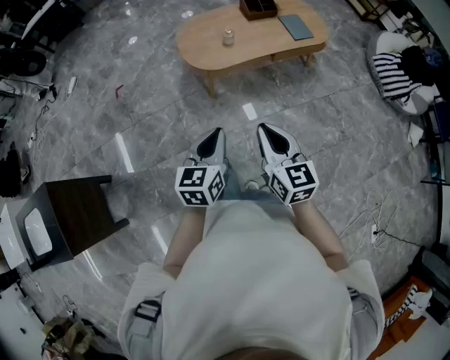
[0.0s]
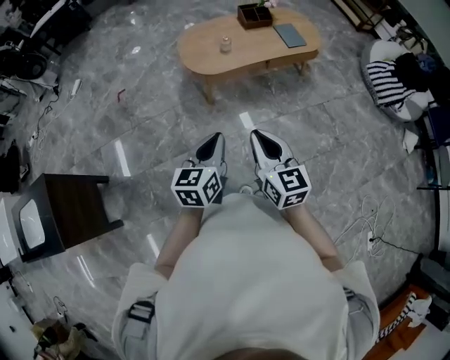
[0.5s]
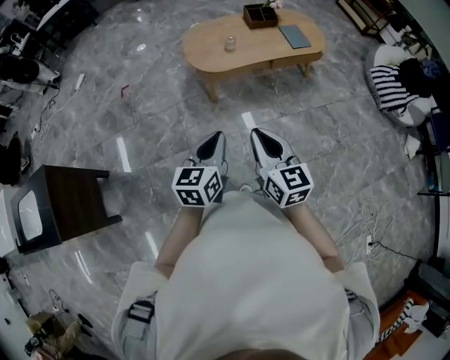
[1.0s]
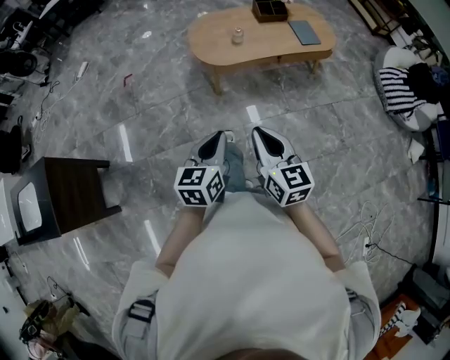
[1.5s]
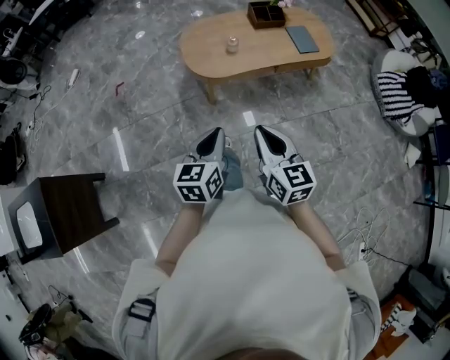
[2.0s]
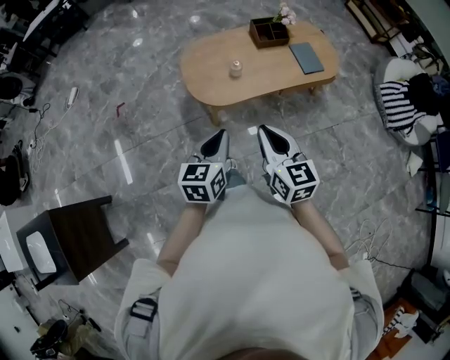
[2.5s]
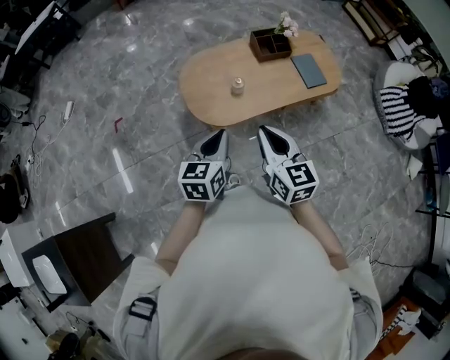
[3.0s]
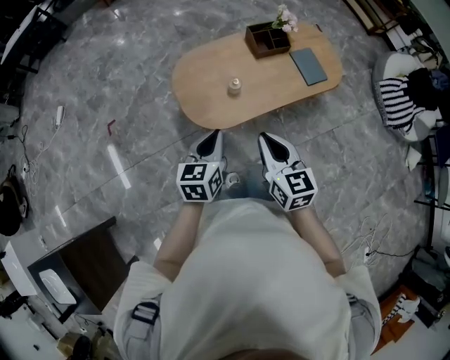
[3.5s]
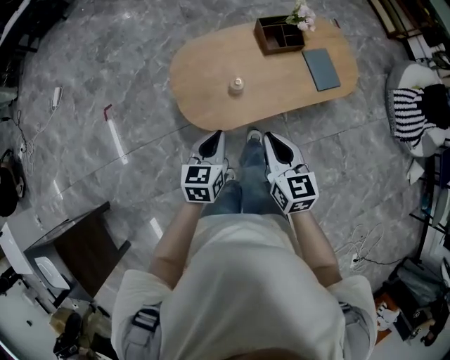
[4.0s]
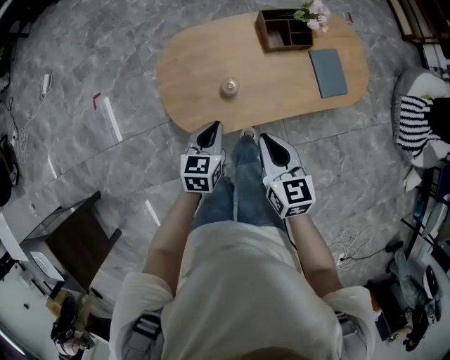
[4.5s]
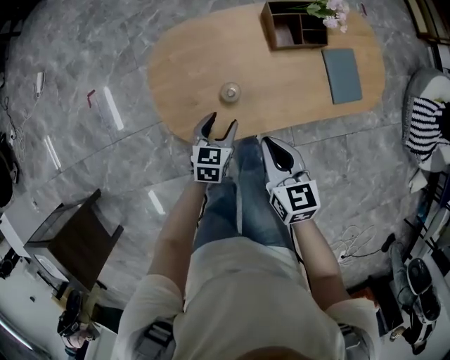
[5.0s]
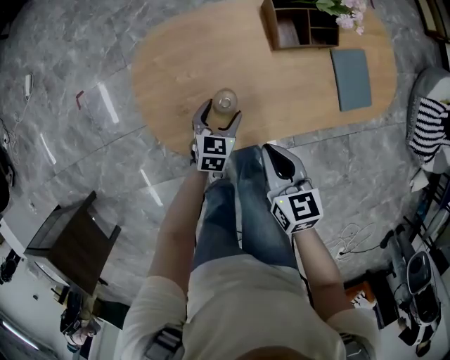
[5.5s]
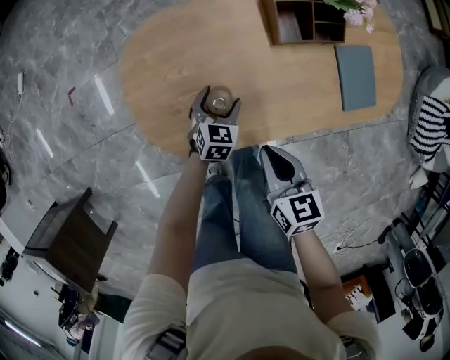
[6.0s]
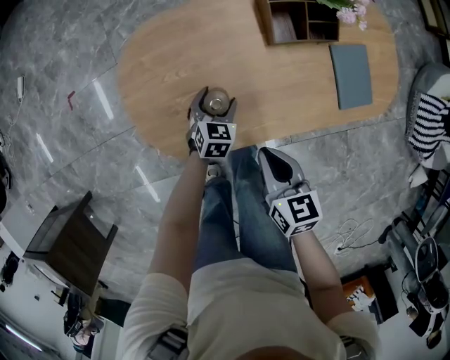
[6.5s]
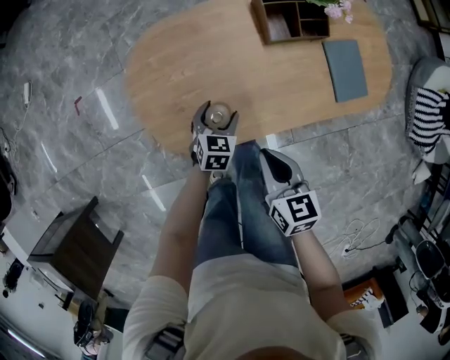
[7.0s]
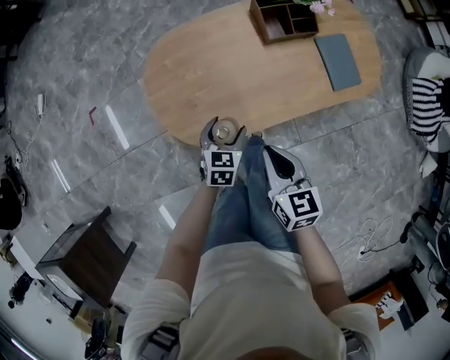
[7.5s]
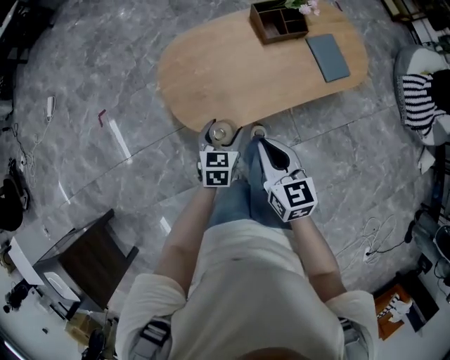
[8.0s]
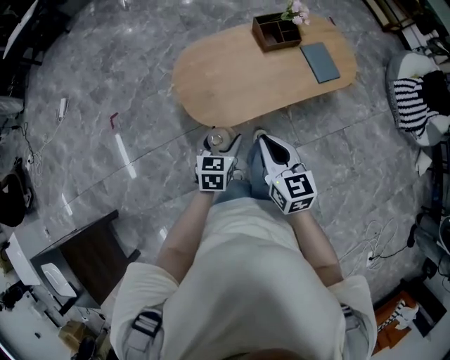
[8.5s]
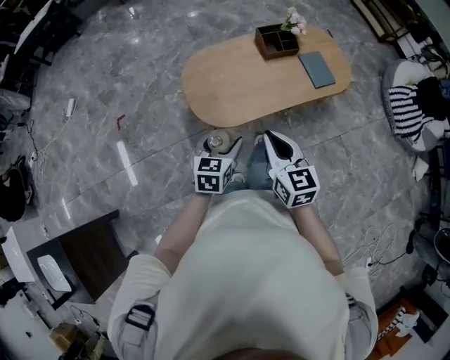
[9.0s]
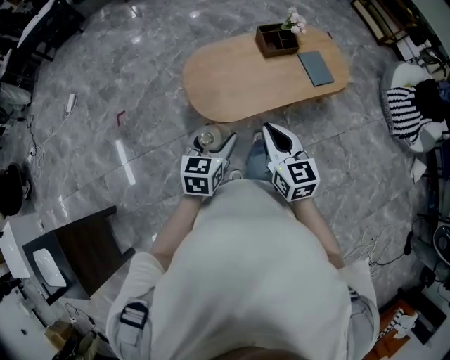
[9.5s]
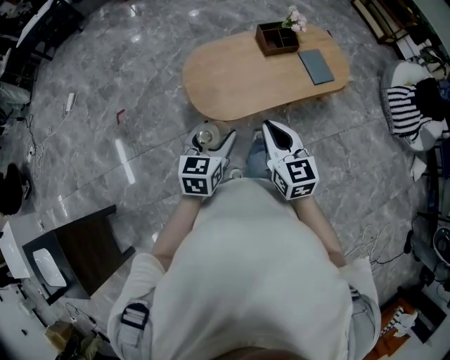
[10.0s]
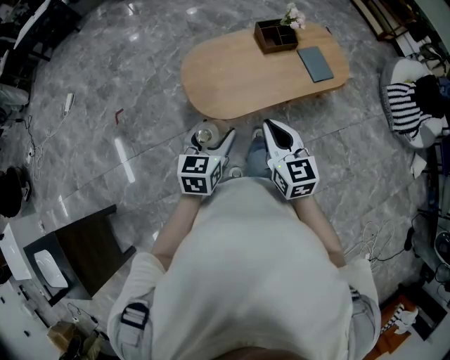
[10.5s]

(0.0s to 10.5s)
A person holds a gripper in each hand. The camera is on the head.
0.0s - 2.0s: The right gripper goes some 5 cm forward; the left gripper moves roughly 5 cm.
2.0s - 4.0s: Both grippers travel together forward, some 35 cm.
4.0s - 6.5s: The left gripper travels downward and forward by approximately 40 cm, turns by about 20 degrees, and opens. Meanwhile the right gripper travels downward and forward by some 25 cm, and swivels roughly 20 degrees.
6.5s - 8.5s: The two grippers go approximately 35 cm upward and backward. The right gripper changes its angle by approximately 20 degrees.
8.5s - 10.5s: The left gripper travels upward and backward by roughly 15 cm; the right gripper travels upward by about 5 cm.

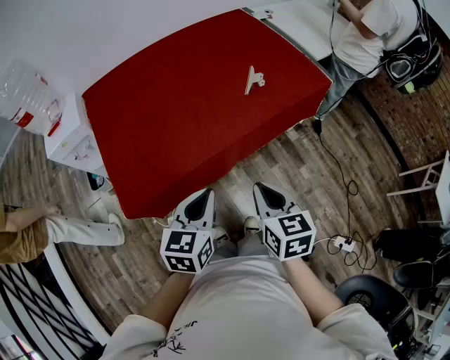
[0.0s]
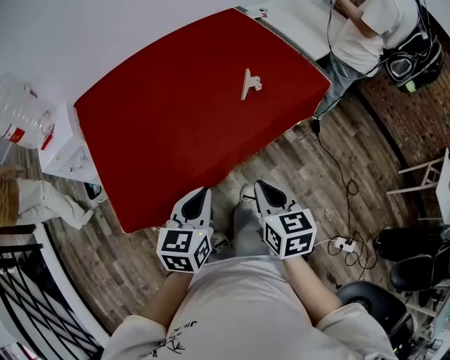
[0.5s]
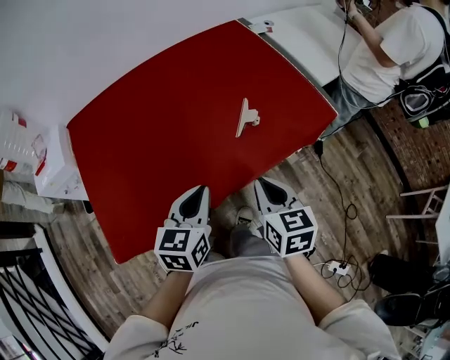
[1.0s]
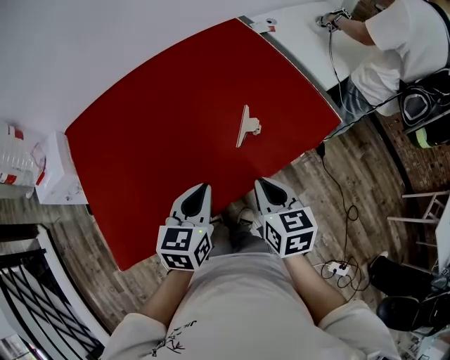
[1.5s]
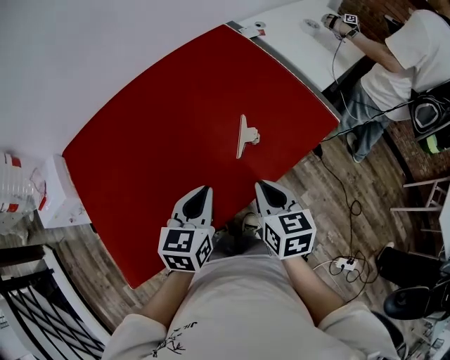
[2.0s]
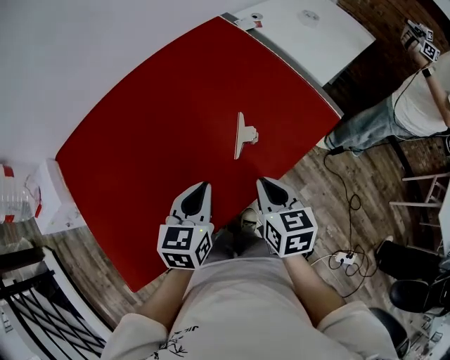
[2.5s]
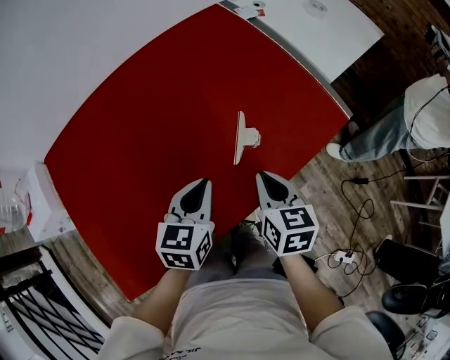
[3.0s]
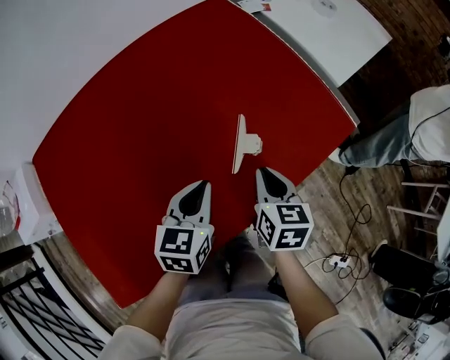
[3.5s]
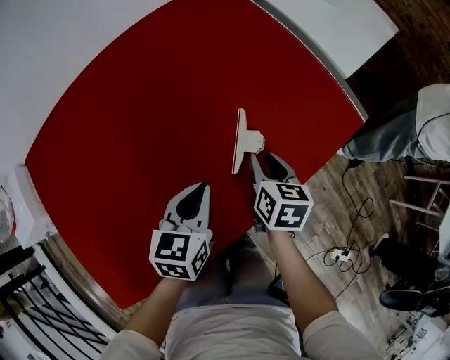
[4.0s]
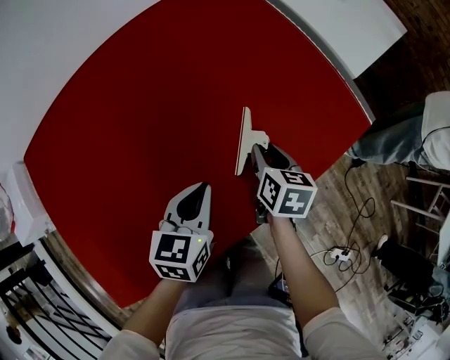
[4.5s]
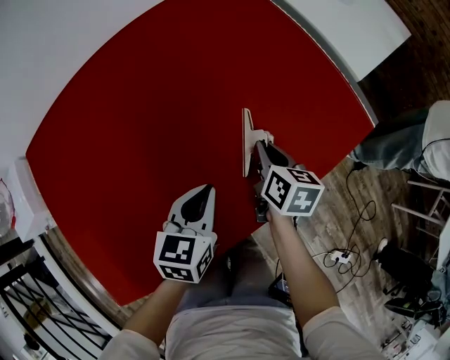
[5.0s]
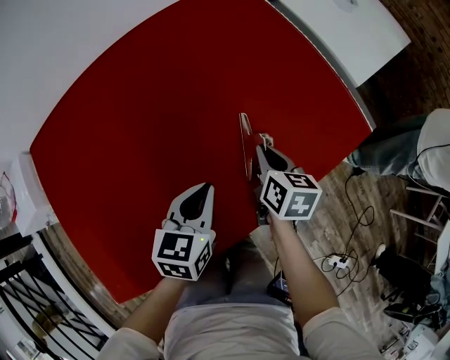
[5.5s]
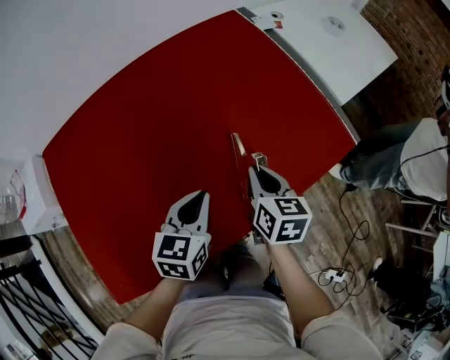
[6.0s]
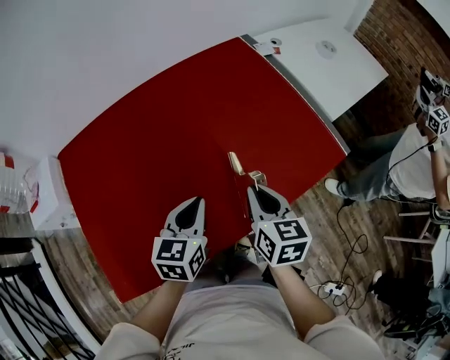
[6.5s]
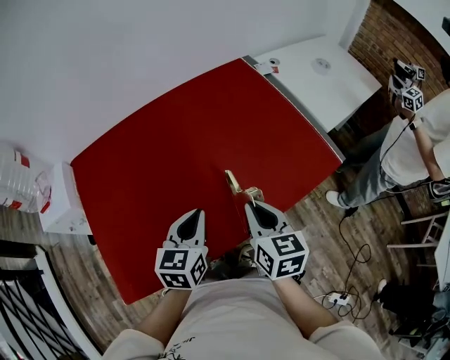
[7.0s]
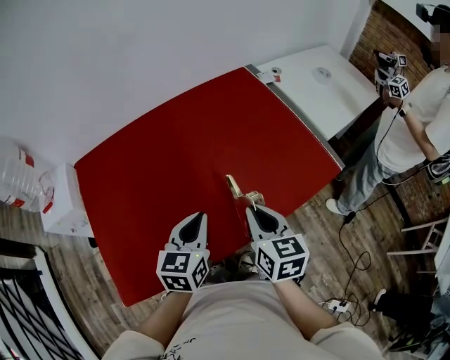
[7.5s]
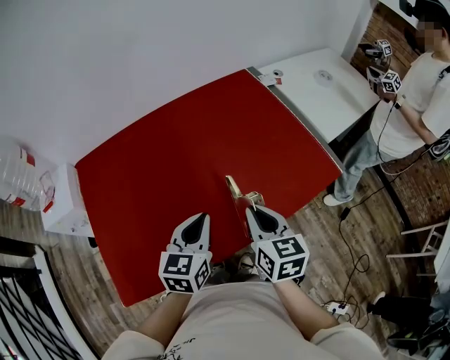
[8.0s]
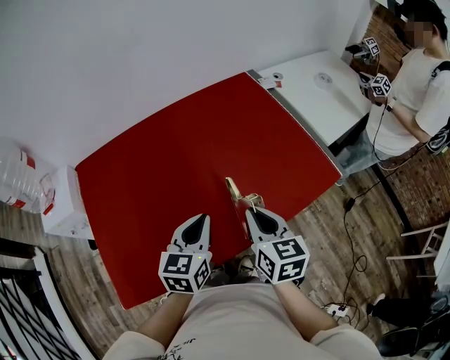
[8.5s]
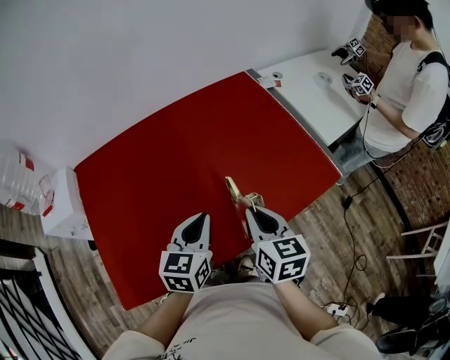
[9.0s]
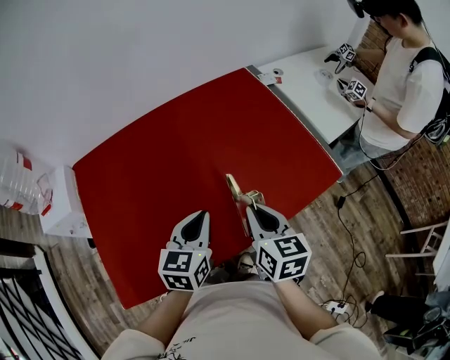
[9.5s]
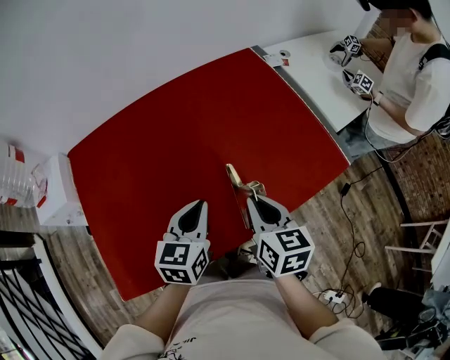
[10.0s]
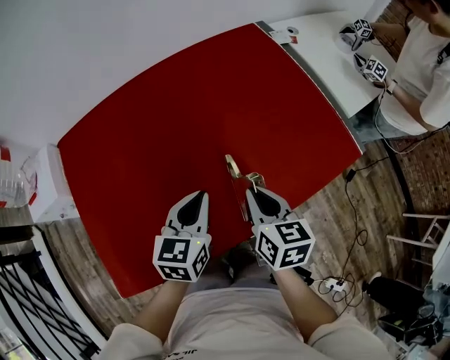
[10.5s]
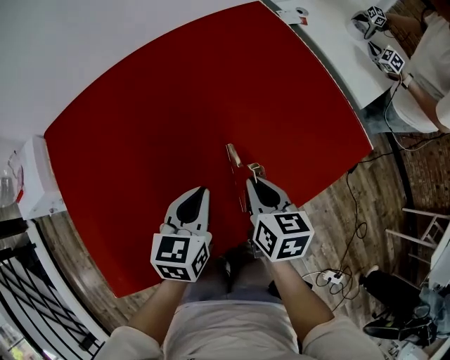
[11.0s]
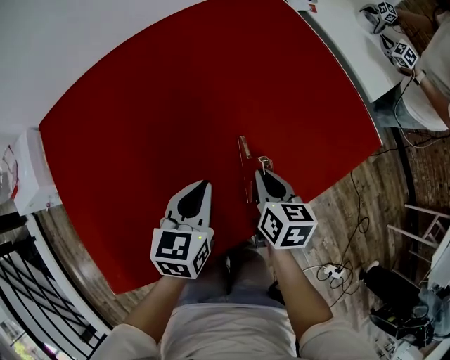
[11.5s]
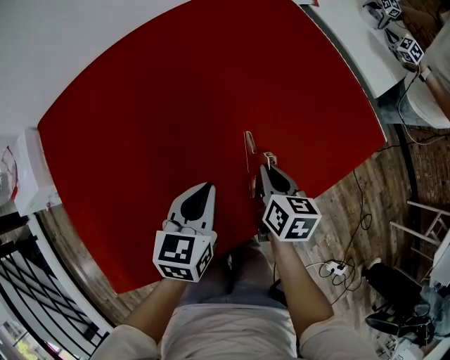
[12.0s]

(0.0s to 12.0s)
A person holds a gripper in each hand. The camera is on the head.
0.0s - 2.0s: Both grippers travel together forward, some 35 cm.
2.0s - 4.0s: The two grippers go roughly 20 cm downward and forward. The right gripper opens its fingers.
4.0s - 6.0s: The right gripper shifts some 10 cm upward; the left gripper heads upward, covering roughly 5 cm.
6.0s - 8.0s: The grippers both shift upward and backward by some 15 cm.
8.0s - 10.0s: The left gripper shifts by roughly 5 cm.
10.0s - 12.0s: Both grippers move downward, approximately 20 cm.

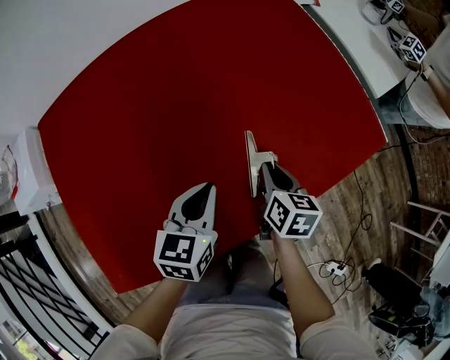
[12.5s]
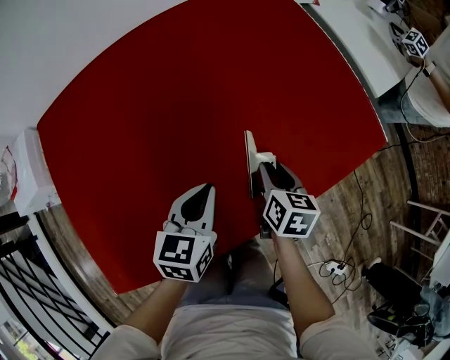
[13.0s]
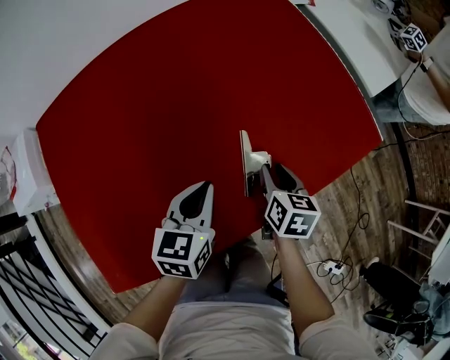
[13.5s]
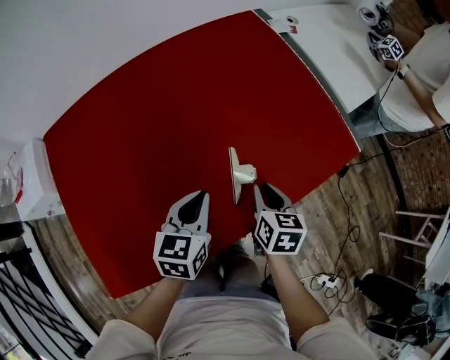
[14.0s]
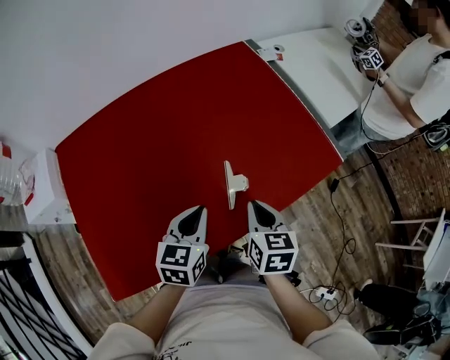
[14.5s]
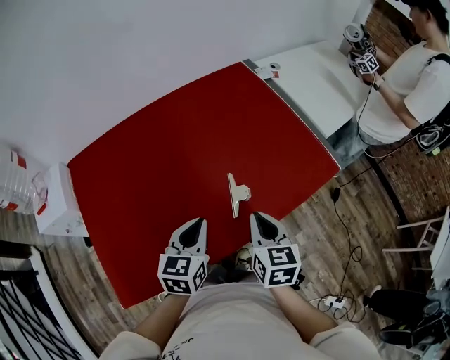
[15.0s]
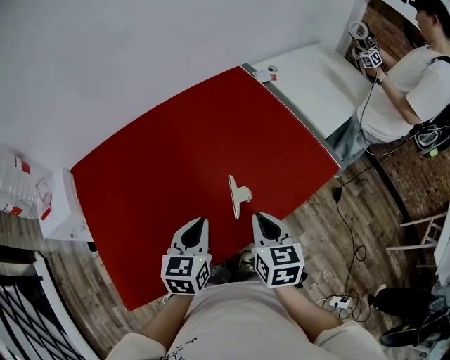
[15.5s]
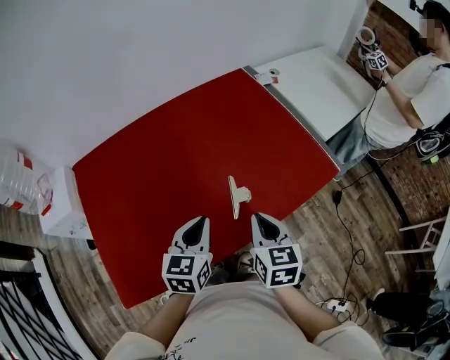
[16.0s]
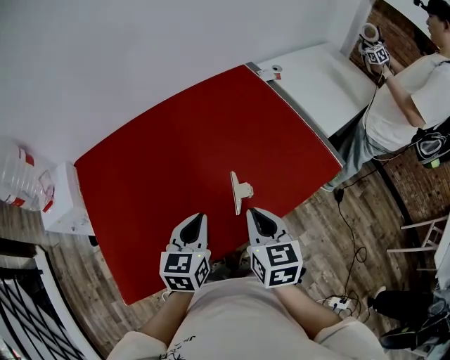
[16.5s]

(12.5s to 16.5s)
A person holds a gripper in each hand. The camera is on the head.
12.5s - 14.5s: The left gripper goes about 10 cm upward. The right gripper heads upward and backward, covering about 20 cm, and opens and closes again.
14.5s - 16.5s: The grippers both shift upward by approximately 10 cm.
